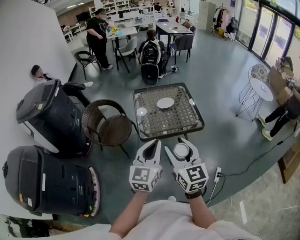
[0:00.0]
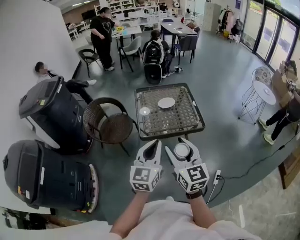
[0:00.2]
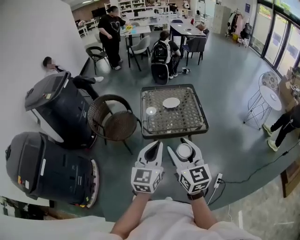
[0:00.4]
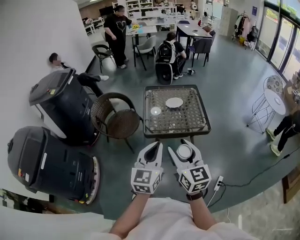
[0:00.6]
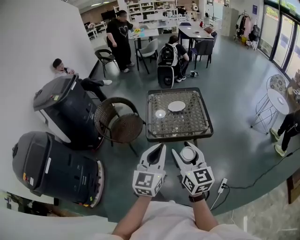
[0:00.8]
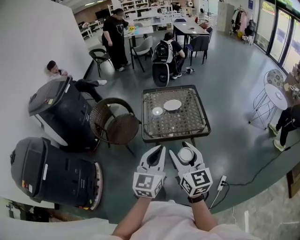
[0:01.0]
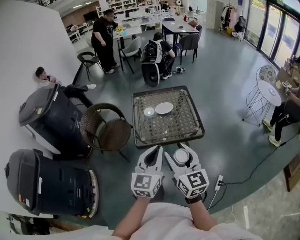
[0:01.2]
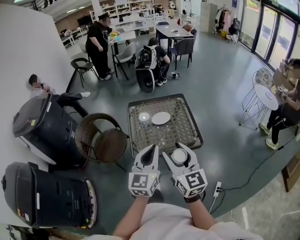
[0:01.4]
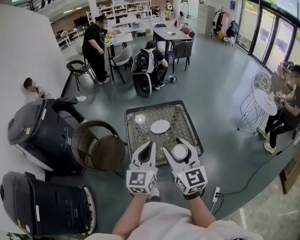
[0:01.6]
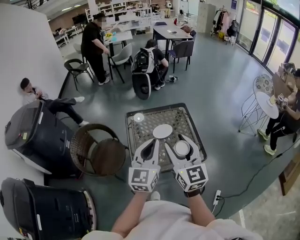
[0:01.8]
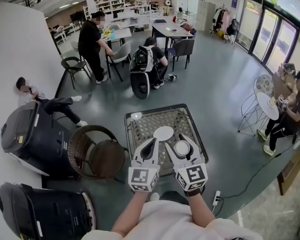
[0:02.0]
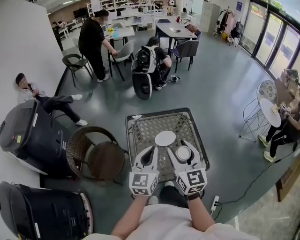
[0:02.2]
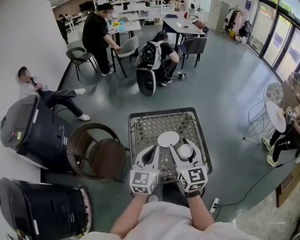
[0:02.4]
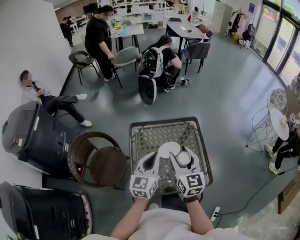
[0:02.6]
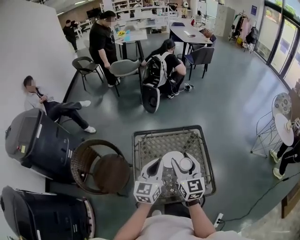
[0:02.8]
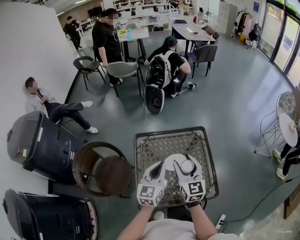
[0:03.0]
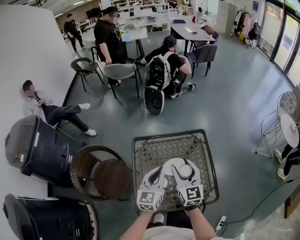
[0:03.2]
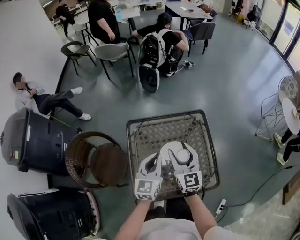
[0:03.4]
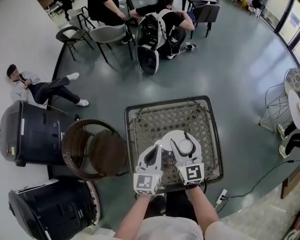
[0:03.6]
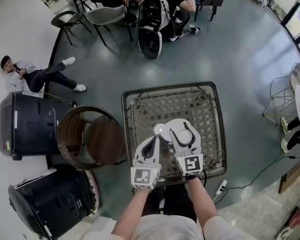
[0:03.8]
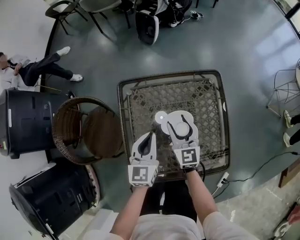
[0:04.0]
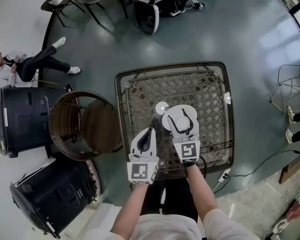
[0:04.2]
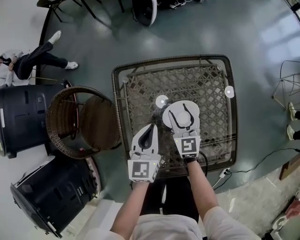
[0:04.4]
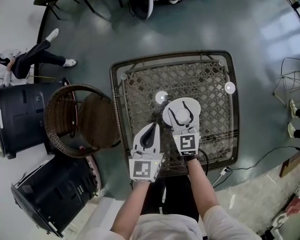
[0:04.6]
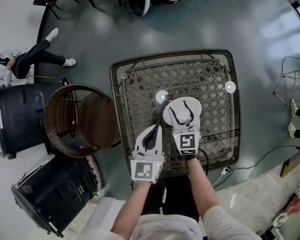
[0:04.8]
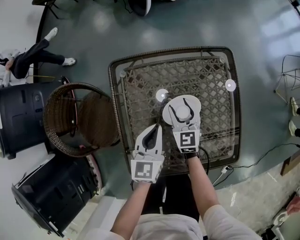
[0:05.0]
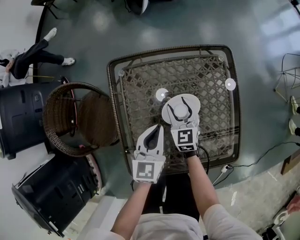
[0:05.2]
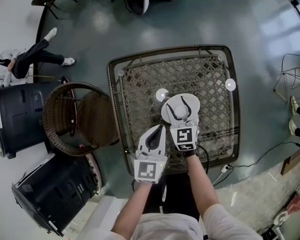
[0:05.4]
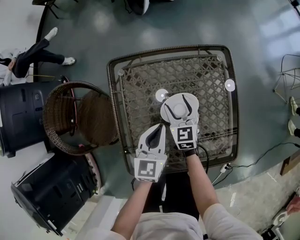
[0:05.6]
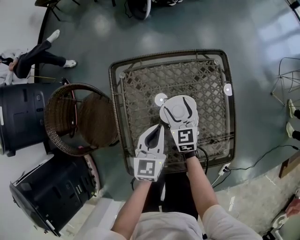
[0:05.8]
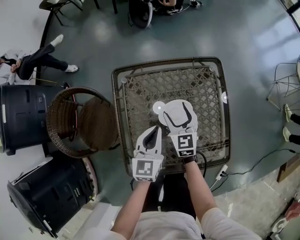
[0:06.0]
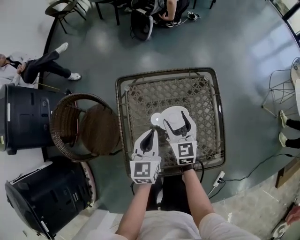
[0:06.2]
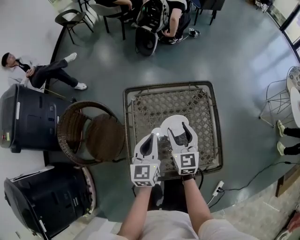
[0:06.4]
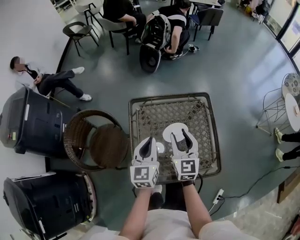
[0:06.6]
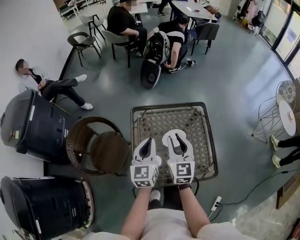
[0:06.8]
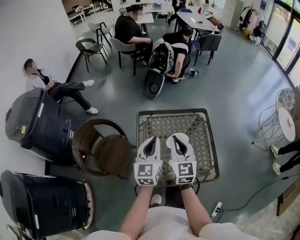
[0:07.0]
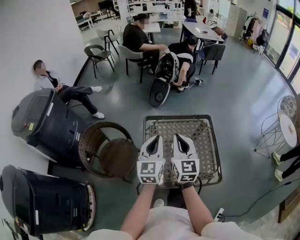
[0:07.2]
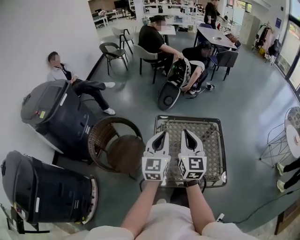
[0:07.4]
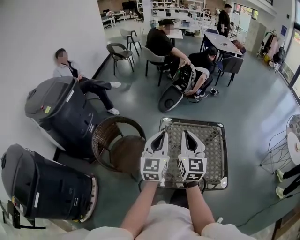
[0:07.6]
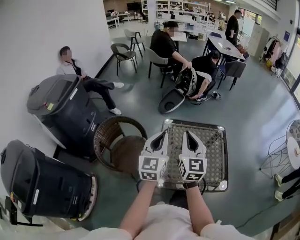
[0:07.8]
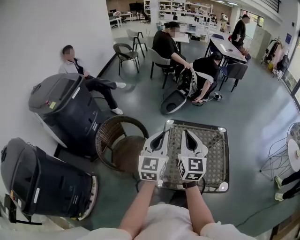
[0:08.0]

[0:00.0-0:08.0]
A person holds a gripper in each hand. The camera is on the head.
0:00.0 to 0:01.6: Both grippers travel together forward, about 20 cm.
0:01.6 to 0:03.2: The two grippers go about 35 cm forward and downward.
0:03.2 to 0:04.8: The right gripper heads downward, covering about 30 cm. Meanwhile the left gripper shifts roughly 20 cm downward.
0:04.8 to 0:06.4: The right gripper goes approximately 20 cm upward, while the left gripper heads upward, covering roughly 10 cm.
0:06.4 to 0:08.0: The two grippers go some 30 cm upward and to the left. The left gripper changes its angle by some 20 degrees. The right gripper turns by approximately 20 degrees, and closes its fingers.

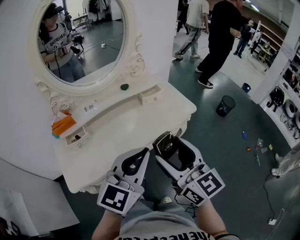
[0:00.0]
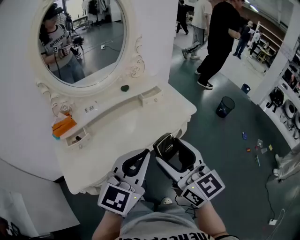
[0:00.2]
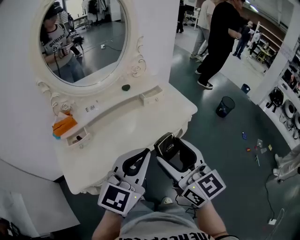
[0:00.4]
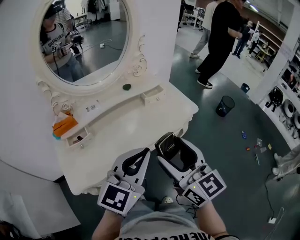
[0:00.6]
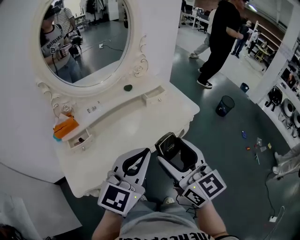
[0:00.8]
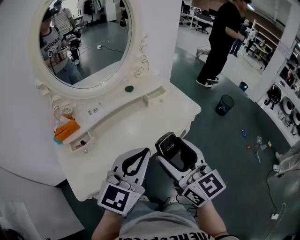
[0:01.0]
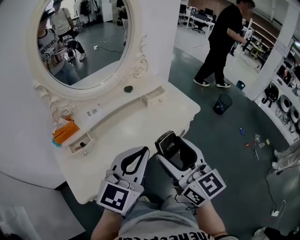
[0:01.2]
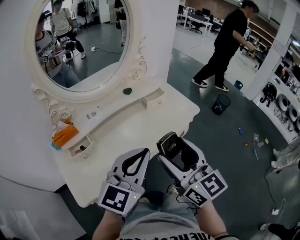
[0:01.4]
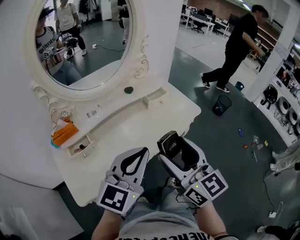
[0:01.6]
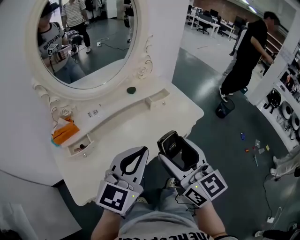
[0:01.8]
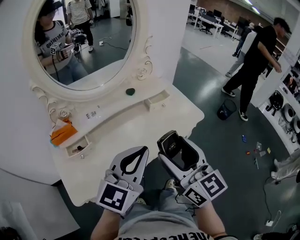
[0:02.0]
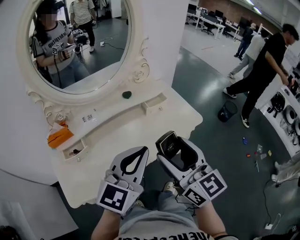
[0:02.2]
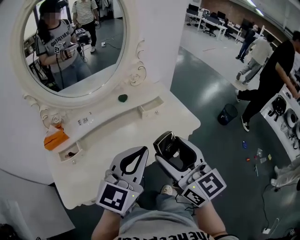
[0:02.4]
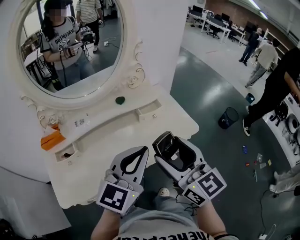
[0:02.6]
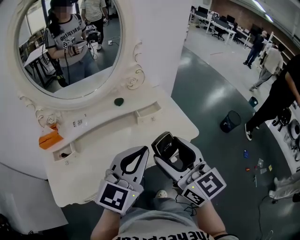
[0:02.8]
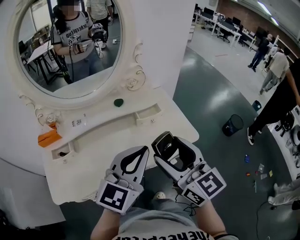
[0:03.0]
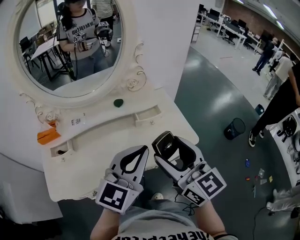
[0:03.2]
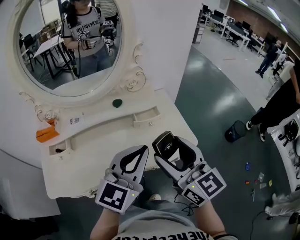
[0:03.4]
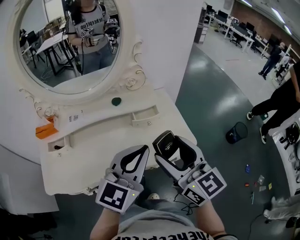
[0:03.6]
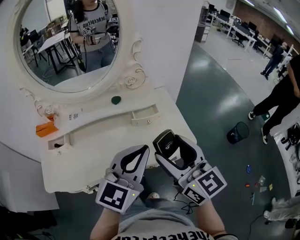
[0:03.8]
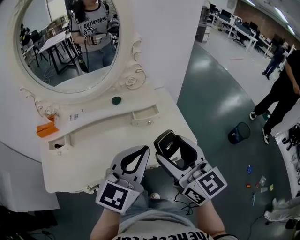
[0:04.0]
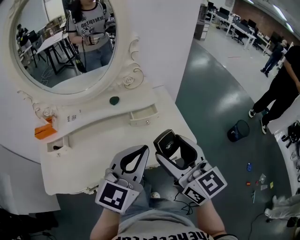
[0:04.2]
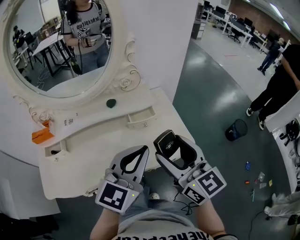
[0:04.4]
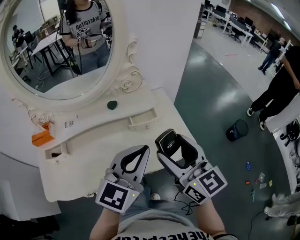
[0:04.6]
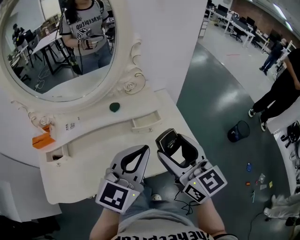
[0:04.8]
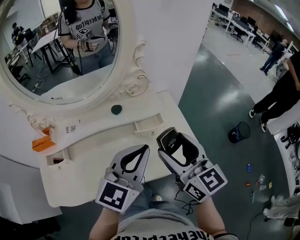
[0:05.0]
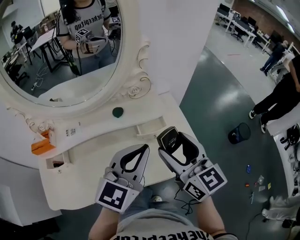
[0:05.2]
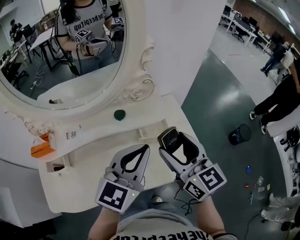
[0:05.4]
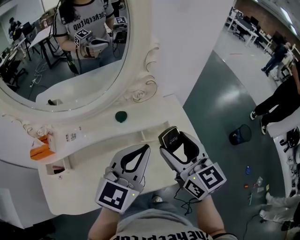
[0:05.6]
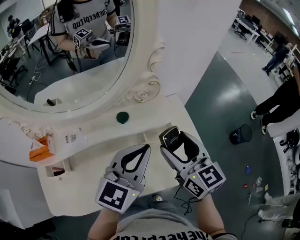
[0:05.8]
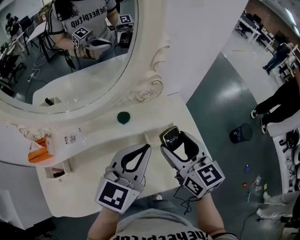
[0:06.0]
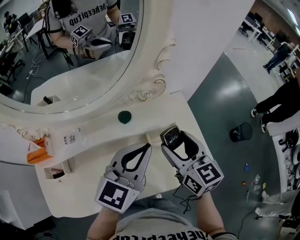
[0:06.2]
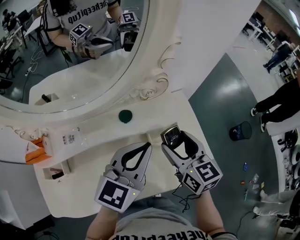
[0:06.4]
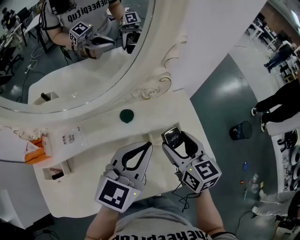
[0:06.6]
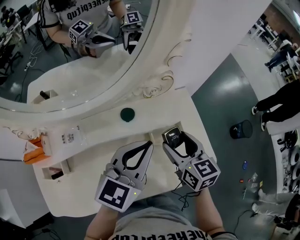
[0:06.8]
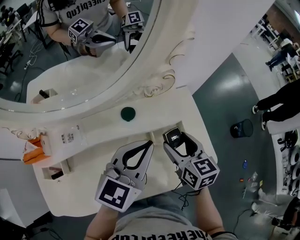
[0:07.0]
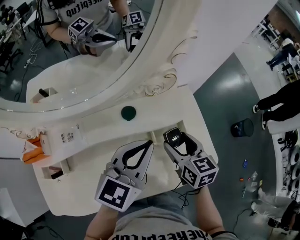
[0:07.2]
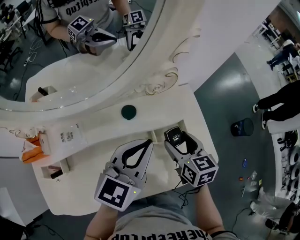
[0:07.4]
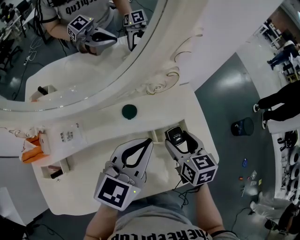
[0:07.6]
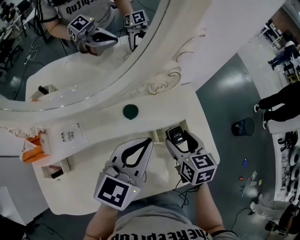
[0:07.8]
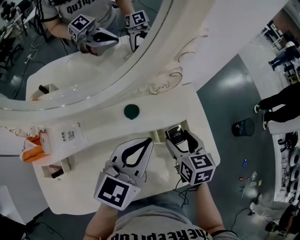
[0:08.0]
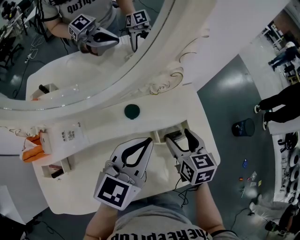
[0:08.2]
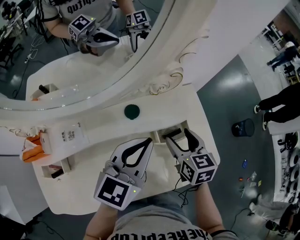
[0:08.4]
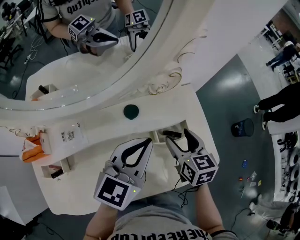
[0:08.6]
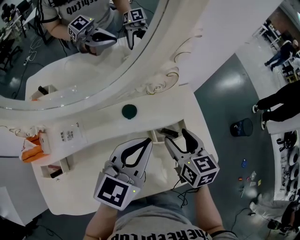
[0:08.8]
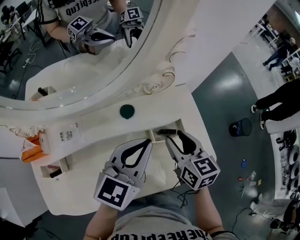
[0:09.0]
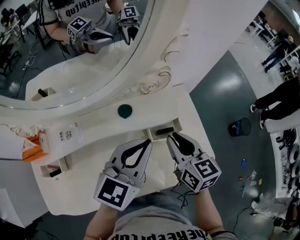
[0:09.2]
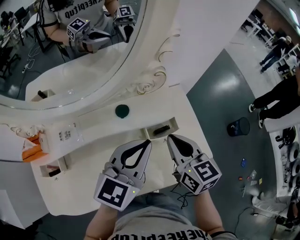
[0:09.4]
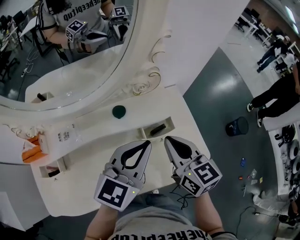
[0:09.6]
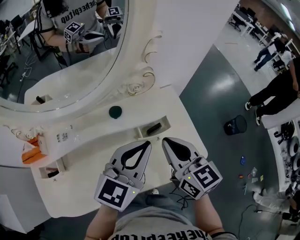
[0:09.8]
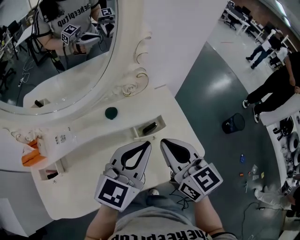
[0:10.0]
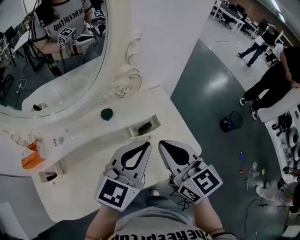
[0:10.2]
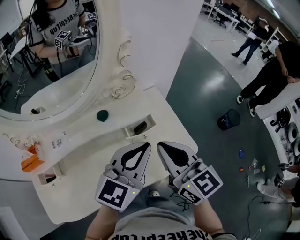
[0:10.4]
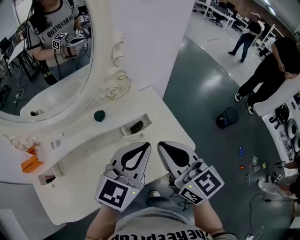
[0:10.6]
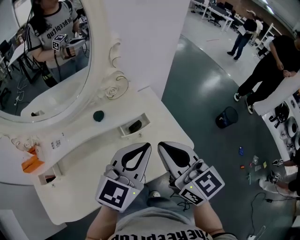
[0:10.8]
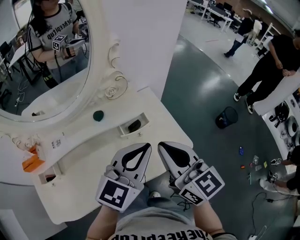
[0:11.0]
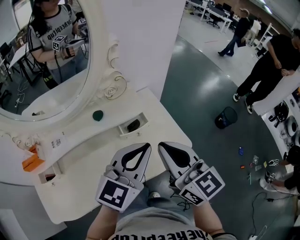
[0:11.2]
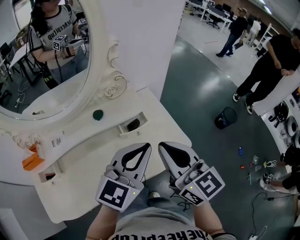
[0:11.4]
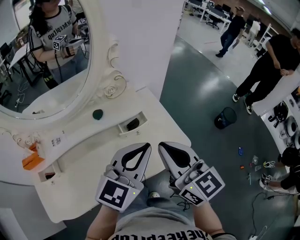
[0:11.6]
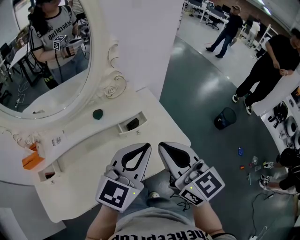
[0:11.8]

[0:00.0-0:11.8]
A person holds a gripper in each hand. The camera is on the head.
0:00.0 to 0:01.4: The grippers both shift to the left by some 5 cm.
0:01.4 to 0:03.0: Both grippers move forward and to the right, some 20 cm.
0:03.0 to 0:04.4: The left gripper is displaced to the right by about 5 cm. The right gripper shifts roughly 10 cm to the right and forward.
0:04.4 to 0:06.0: The left gripper travels forward and to the left by approximately 15 cm. Meanwhile the right gripper is displaced forward, downward and to the left by about 20 cm.
0:06.0 to 0:07.4: The right gripper moves downward, about 10 cm, and changes its angle by approximately 20 degrees; the left gripper ends up about 5 cm from where it was.
0:07.4 to 0:08.8: The grippers stay close to where they were, moving slightly.
0:08.8 to 0:10.4: The left gripper moves to the right, backward and upward, some 15 cm. Meanwhile the right gripper shifts about 20 cm upward and backward, turns by roughly 20 degrees, and closes.
0:10.4 to 0:11.8: The right gripper changes place by approximately 5 cm; the left gripper shifts by some 5 cm.

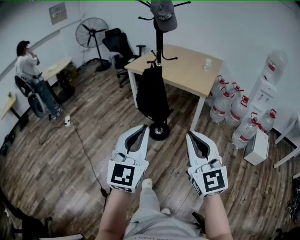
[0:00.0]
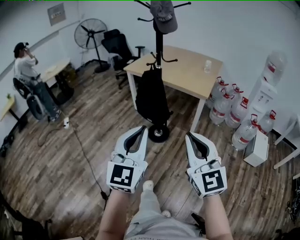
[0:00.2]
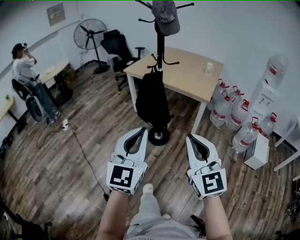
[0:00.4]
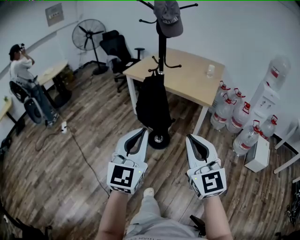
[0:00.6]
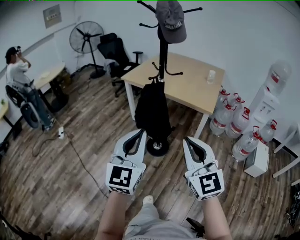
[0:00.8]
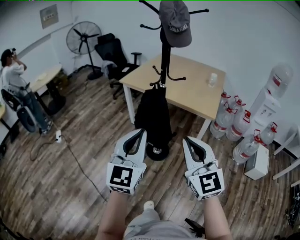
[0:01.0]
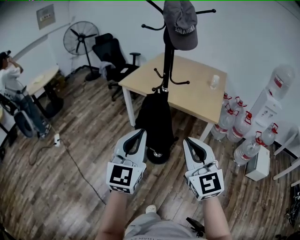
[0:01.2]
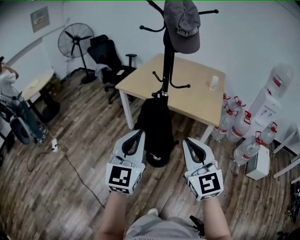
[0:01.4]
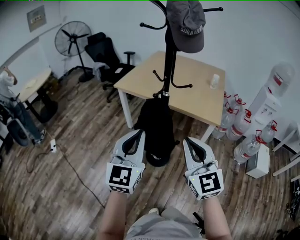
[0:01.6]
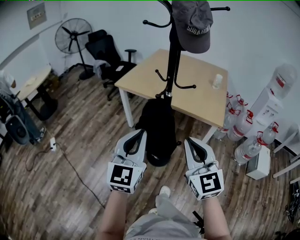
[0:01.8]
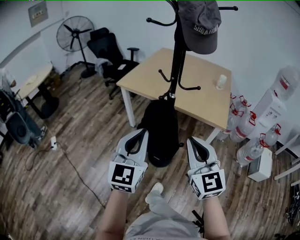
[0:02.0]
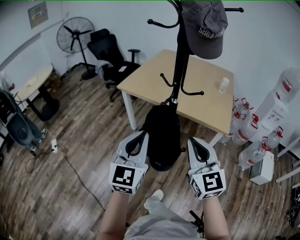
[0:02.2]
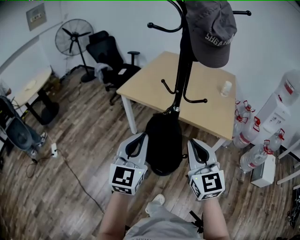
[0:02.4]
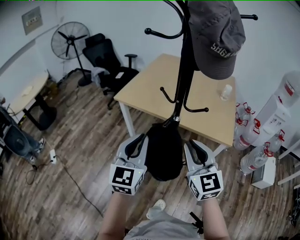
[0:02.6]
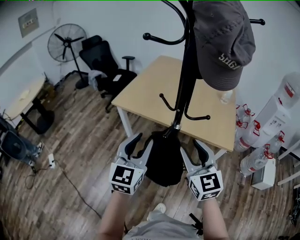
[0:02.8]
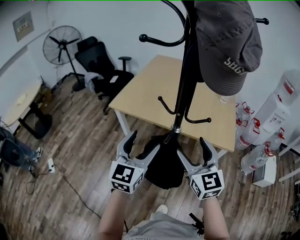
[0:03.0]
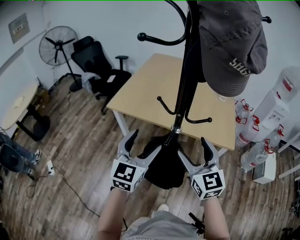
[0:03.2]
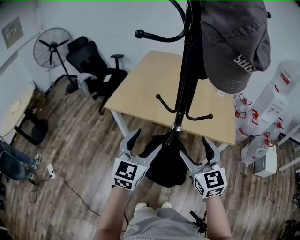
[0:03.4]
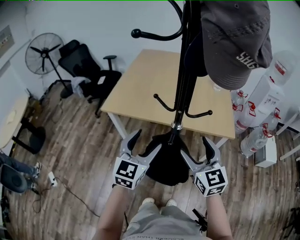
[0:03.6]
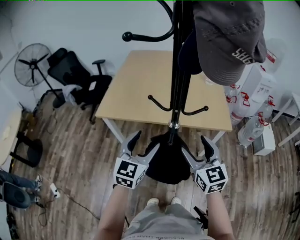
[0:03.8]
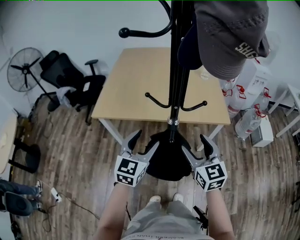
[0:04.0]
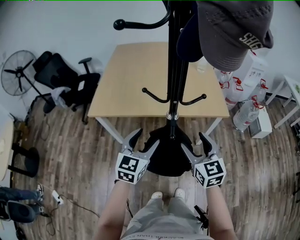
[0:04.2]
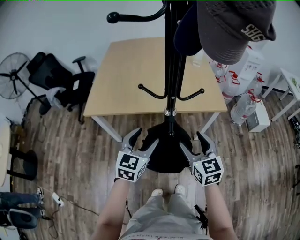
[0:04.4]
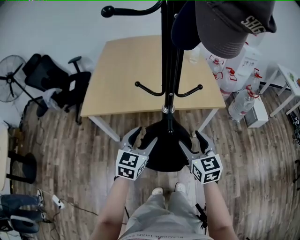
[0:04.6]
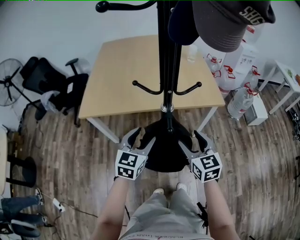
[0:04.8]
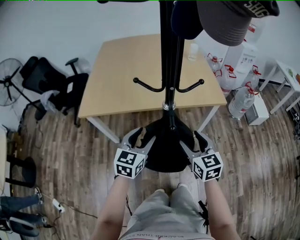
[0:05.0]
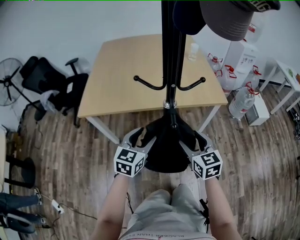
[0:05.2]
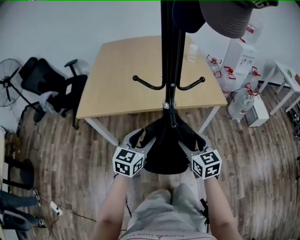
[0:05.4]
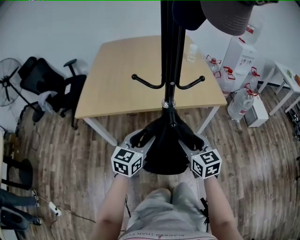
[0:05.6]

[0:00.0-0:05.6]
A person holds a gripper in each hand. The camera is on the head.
0:00.0 to 0:01.4: Both grippers travel together forward, approximately 30 cm.
0:01.4 to 0:02.8: Both grippers move forward, about 25 cm. The right gripper opens up; the left gripper opens its fingers.
0:02.8 to 0:04.2: The left gripper travels downward and forward by about 15 cm, rotates approximately 30 degrees, and opens up, while the right gripper heads downward, covering about 10 cm, changes its angle by about 30 degrees, and opens its fingers.
0:04.2 to 0:05.6: The two grippers go about 10 cm downward.
